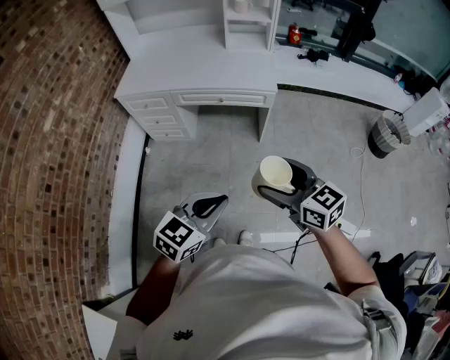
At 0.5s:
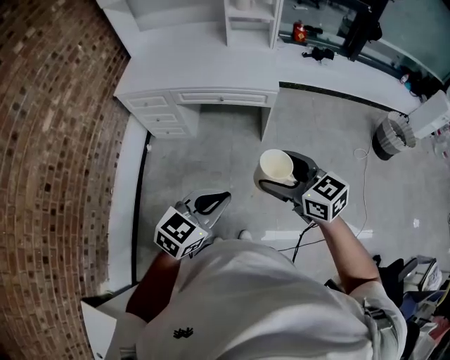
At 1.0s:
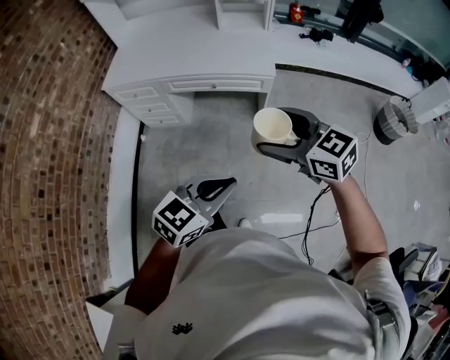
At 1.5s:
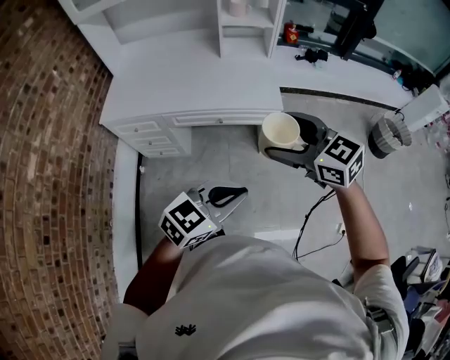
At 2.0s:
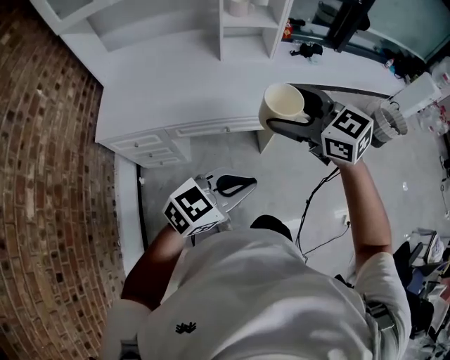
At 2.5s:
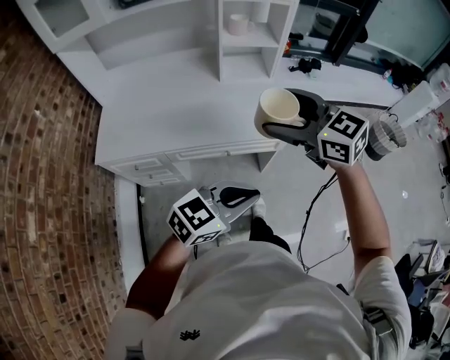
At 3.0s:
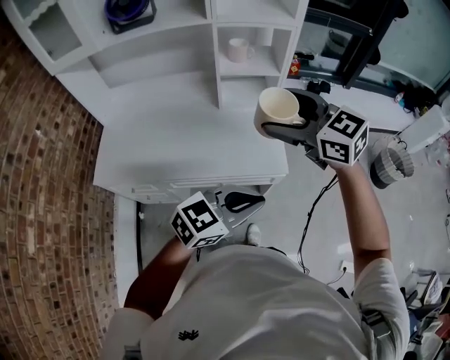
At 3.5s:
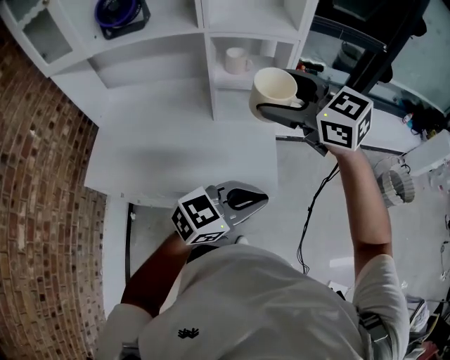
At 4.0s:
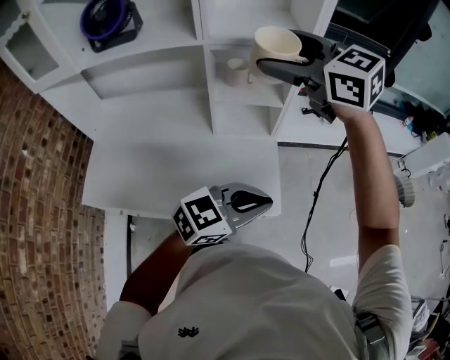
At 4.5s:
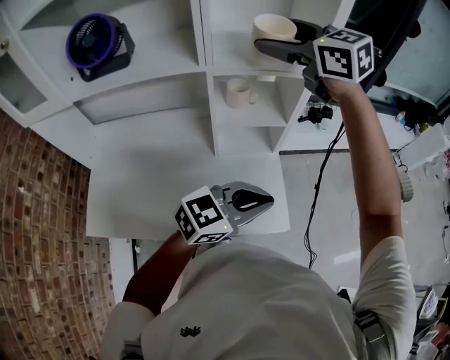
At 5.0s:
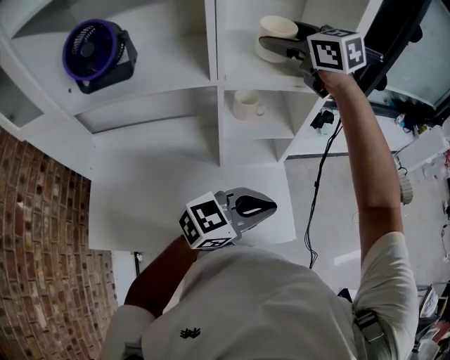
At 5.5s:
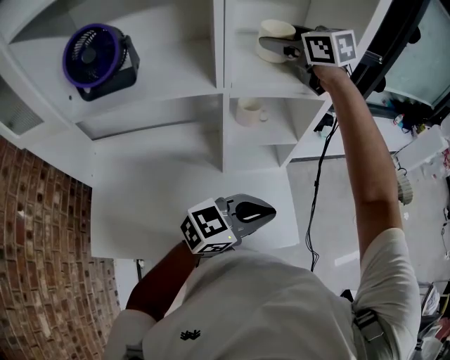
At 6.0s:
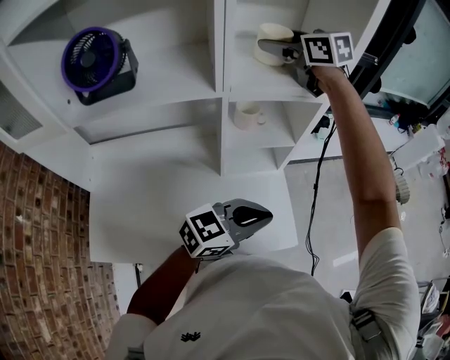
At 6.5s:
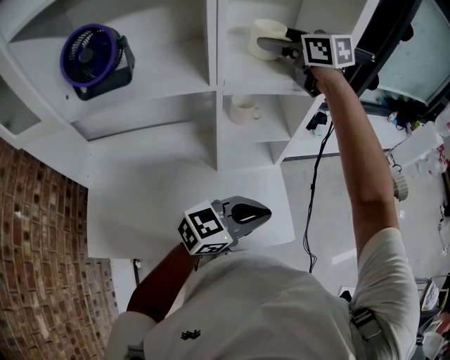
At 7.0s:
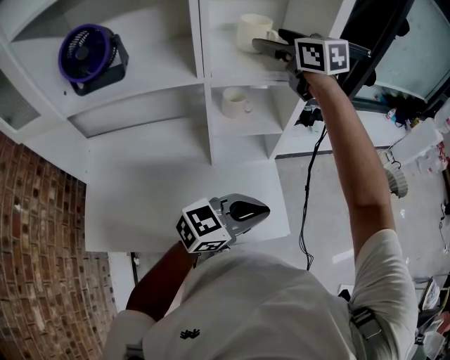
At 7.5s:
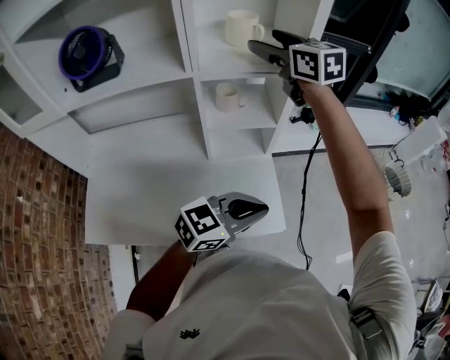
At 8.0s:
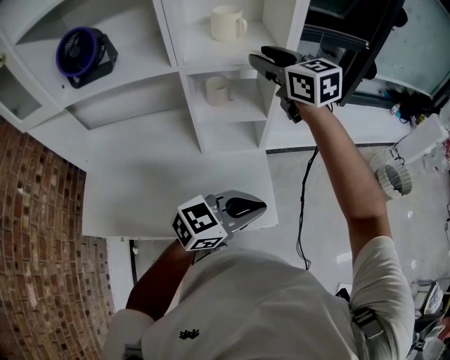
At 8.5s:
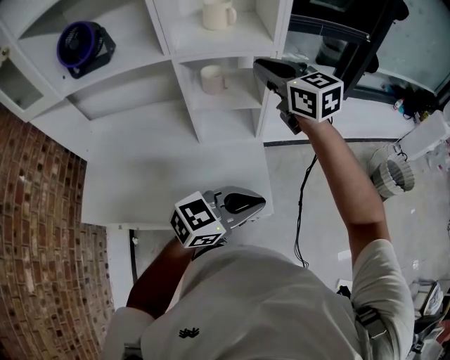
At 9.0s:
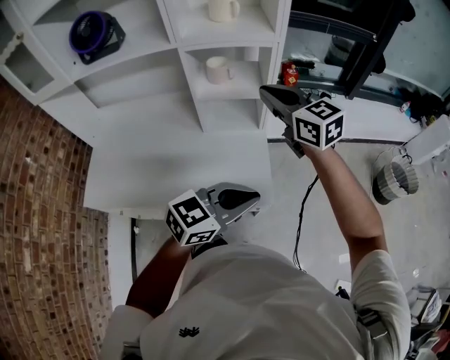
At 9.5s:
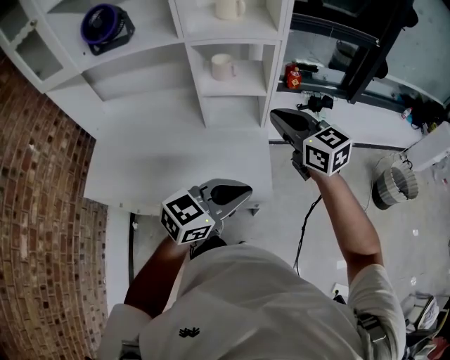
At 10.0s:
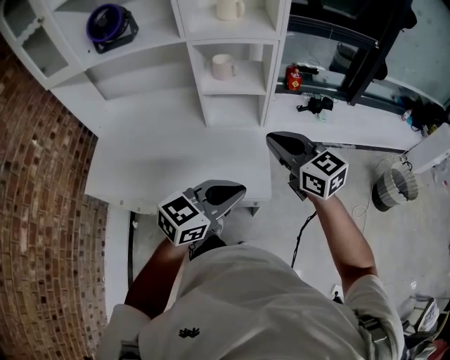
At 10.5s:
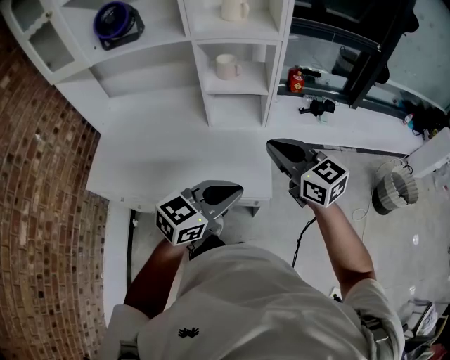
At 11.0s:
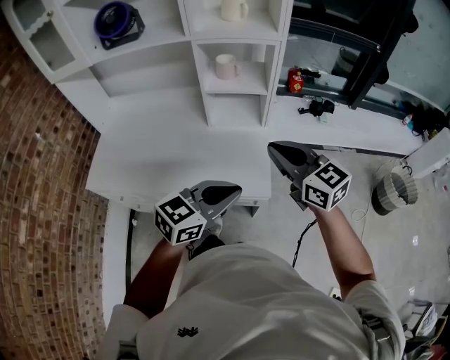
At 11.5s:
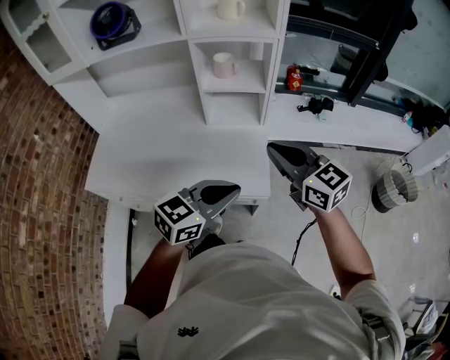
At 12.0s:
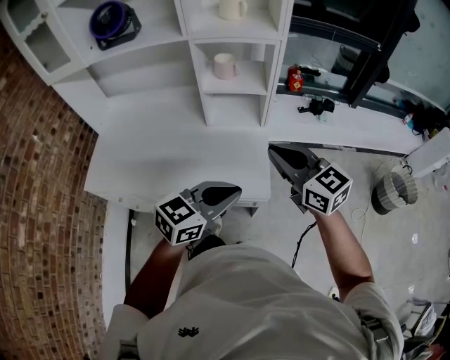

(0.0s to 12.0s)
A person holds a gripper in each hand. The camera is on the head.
0.0s - 2.0s: Both grippers move forward, some 35 cm. The left gripper changes its angle by approximately 30 degrees.
2.0s - 4.0s: The right gripper ends up about 50 cm from where it was. Meanwhile the left gripper ends up roughly 35 cm from where it was.
4.0s - 6.0s: The left gripper shifts by approximately 15 cm. Meanwhile the right gripper changes place by some 25 cm, and changes its angle by some 20 degrees.
6.0s - 8.0s: The left gripper is displaced to the right by approximately 10 cm; the right gripper is displaced to the right and backward by about 15 cm, and closes up.
8.0s - 10.0s: The left gripper goes approximately 10 cm backward, while the right gripper heads backward and downward, covering about 30 cm, and closes its fingers.
10.0s - 12.0s: The grippers make only small movements.

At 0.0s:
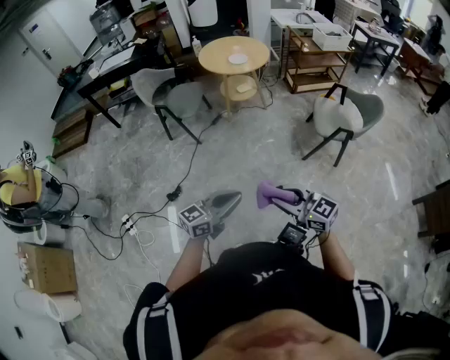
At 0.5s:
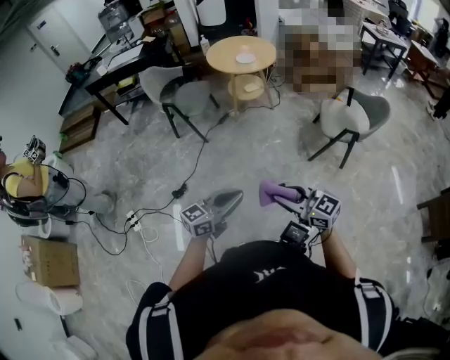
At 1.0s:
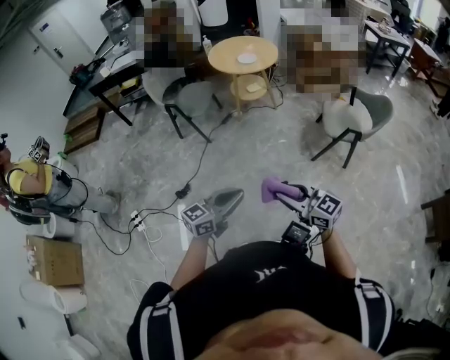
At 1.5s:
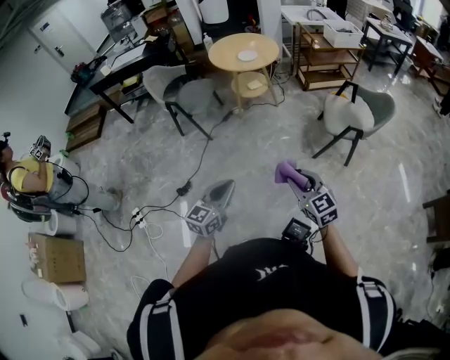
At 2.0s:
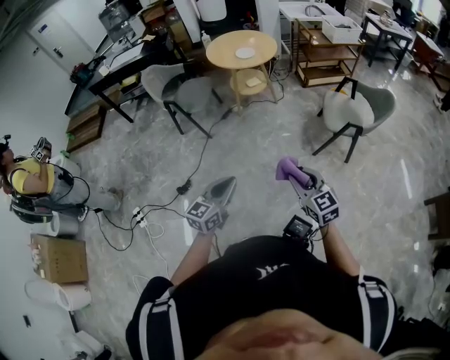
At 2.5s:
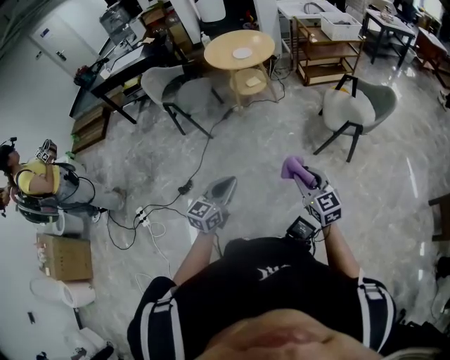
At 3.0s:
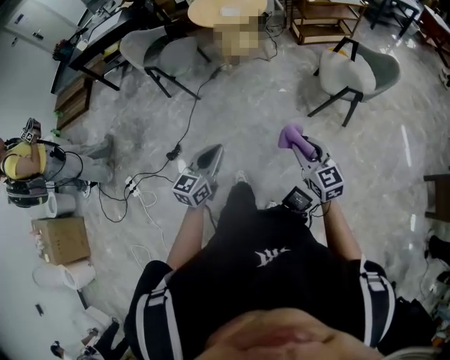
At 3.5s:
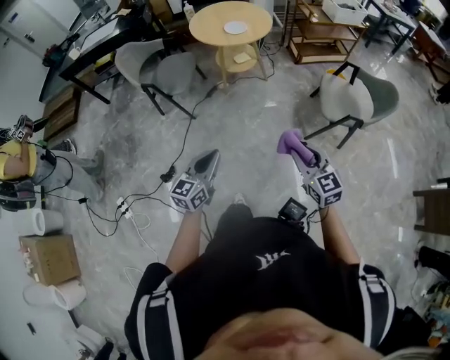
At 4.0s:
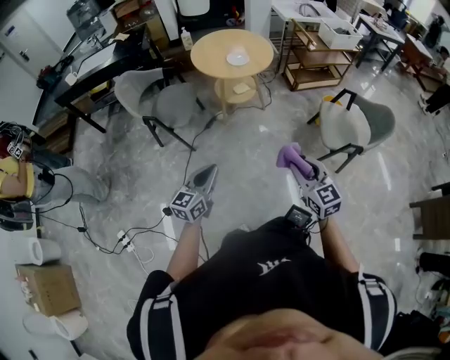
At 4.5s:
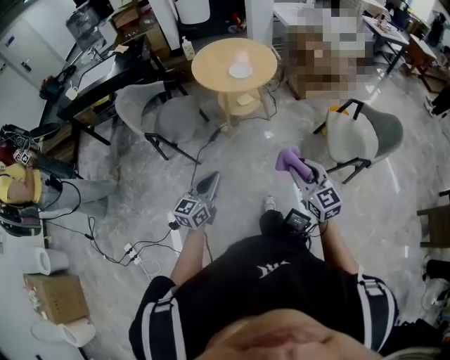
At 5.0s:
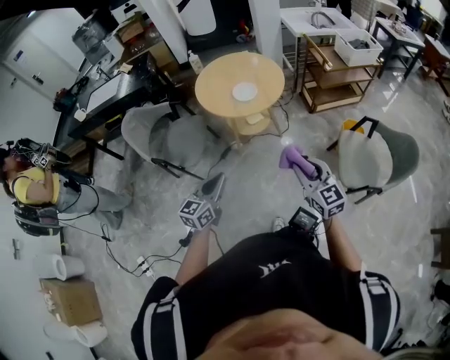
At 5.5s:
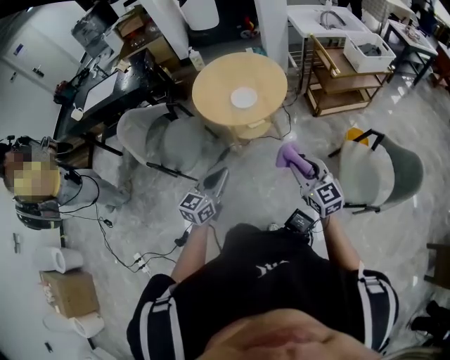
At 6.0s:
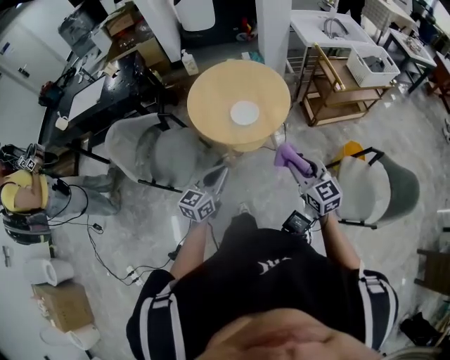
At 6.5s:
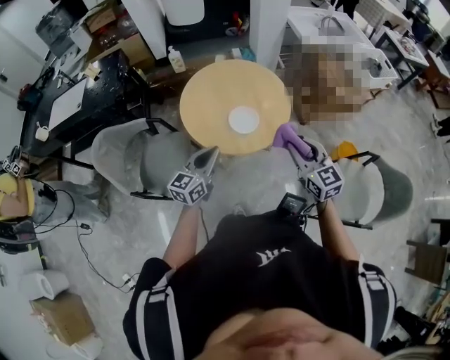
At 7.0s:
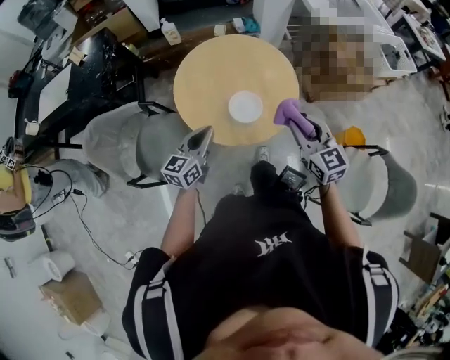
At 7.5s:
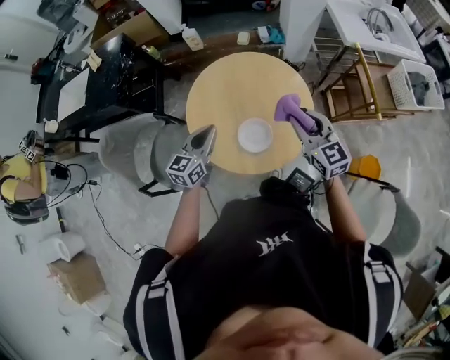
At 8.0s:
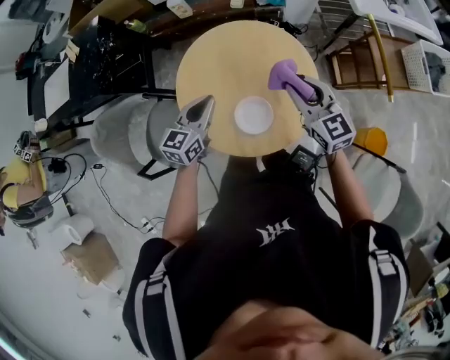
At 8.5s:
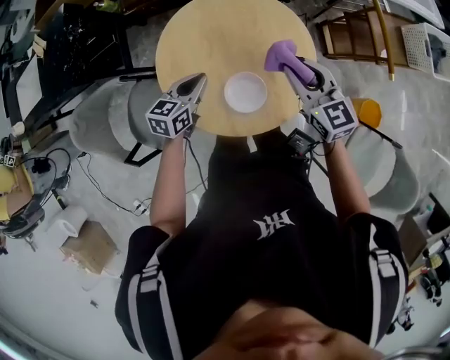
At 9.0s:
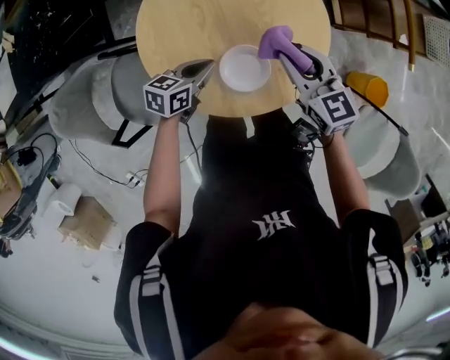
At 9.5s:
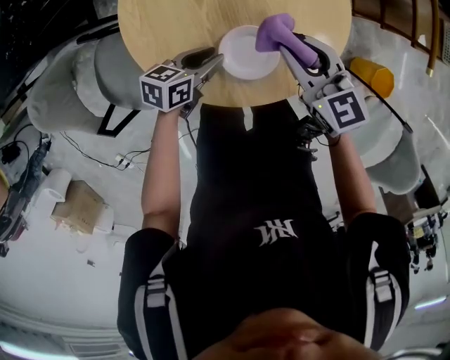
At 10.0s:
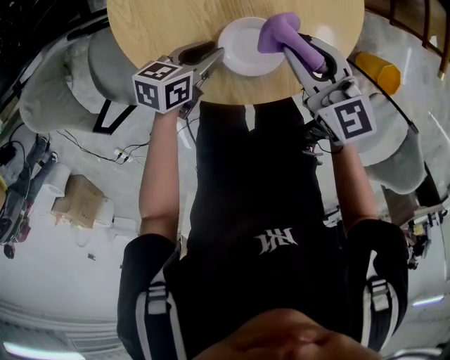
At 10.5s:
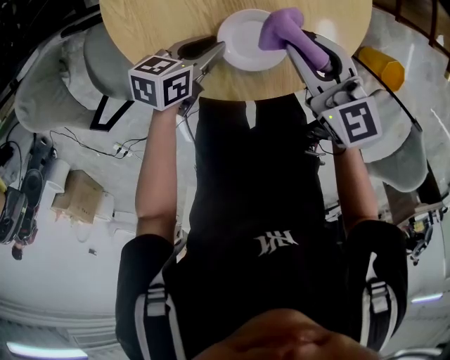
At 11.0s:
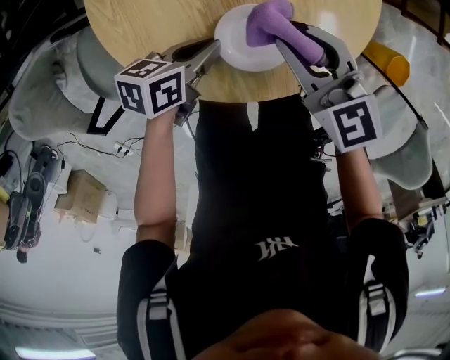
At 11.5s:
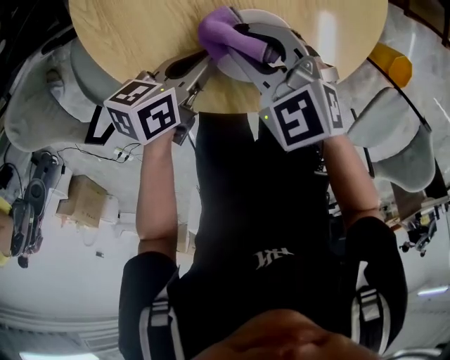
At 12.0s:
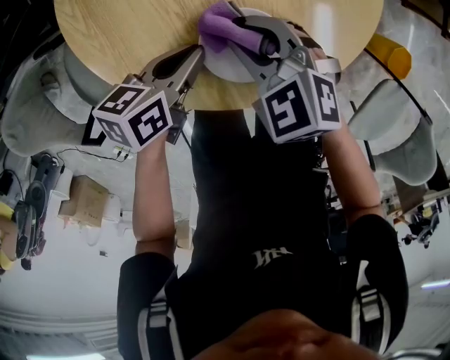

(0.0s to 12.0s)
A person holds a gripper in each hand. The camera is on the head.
0.0s - 2.0s: The right gripper moves to the right and forward, approximately 10 cm, and rotates some 30 degrees; the left gripper turns by about 20 degrees.
2.0s - 4.0s: The left gripper shifts about 30 cm forward and to the left. Meanwhile the right gripper goes about 25 cm forward.
4.0s - 6.0s: Both grippers are carried forward, approximately 50 cm.
6.0s - 8.0s: The two grippers go about 40 cm forward.
8.0s - 10.0s: The left gripper moves downward, roughly 20 cm, rotates roughly 40 degrees, and opens up. The right gripper heads downward and backward, covering approximately 15 cm.
10.0s - 12.0s: The left gripper closes up; the right gripper shifts some 10 cm downward, and changes its angle by some 30 degrees.

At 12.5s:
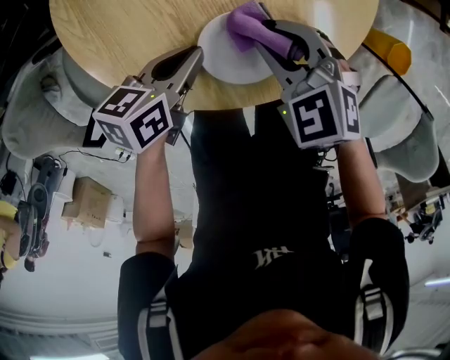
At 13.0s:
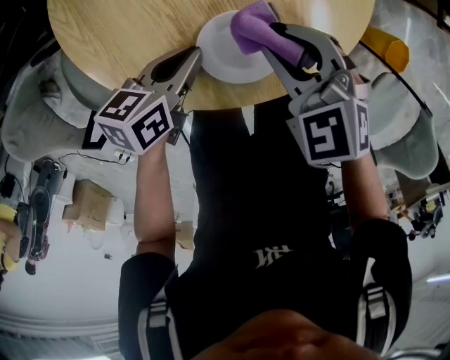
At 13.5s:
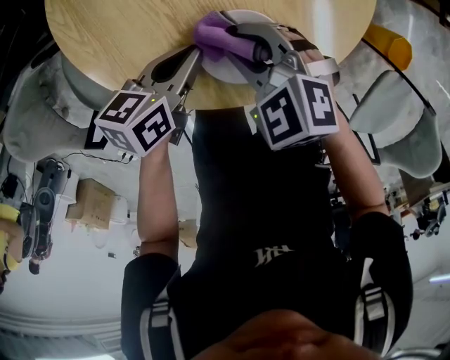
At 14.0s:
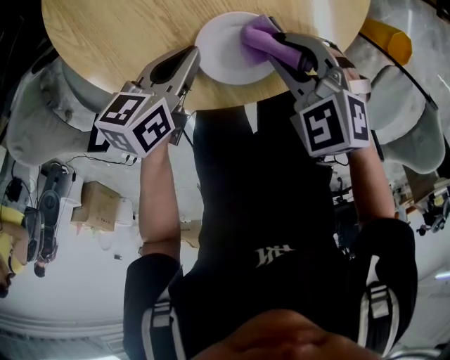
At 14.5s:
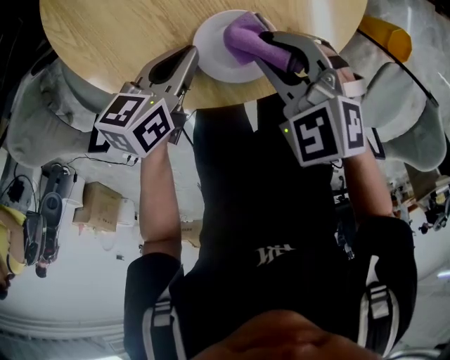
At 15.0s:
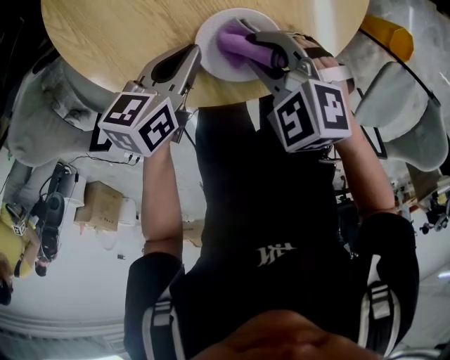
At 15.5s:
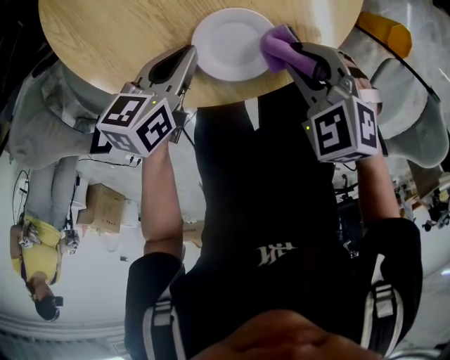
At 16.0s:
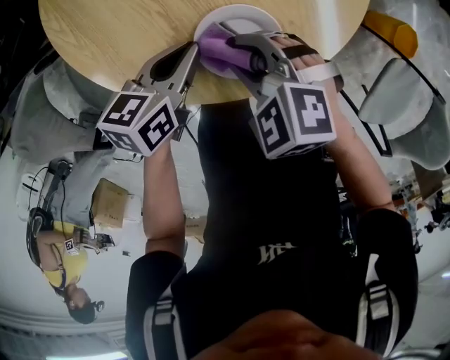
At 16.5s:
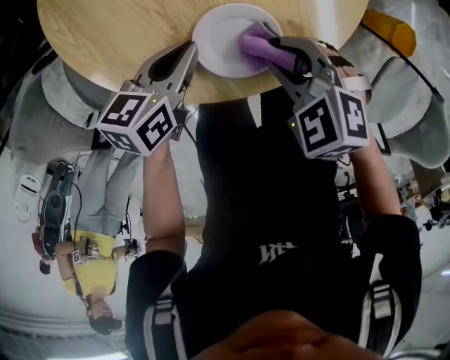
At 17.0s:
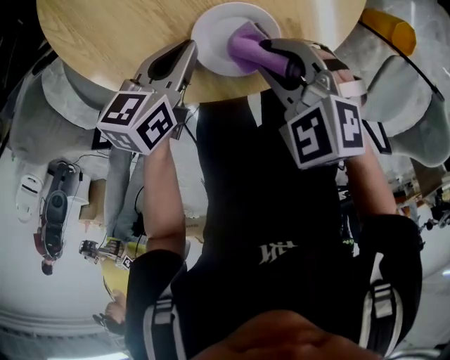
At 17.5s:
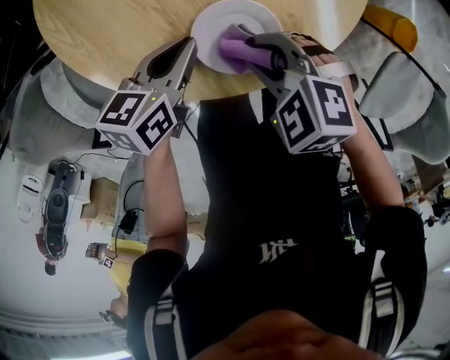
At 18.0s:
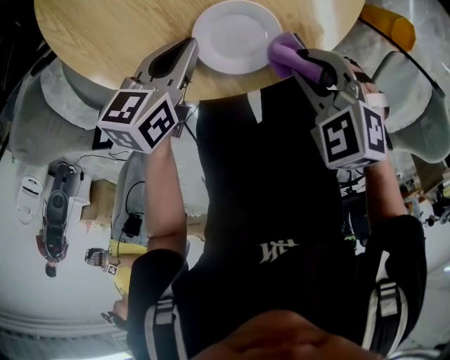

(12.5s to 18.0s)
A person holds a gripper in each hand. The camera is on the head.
14.5s - 16.0s: The right gripper shifts by about 5 cm.
16.0s - 18.0s: The right gripper shifts by some 10 cm.
